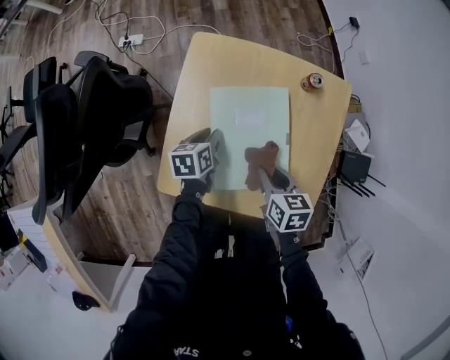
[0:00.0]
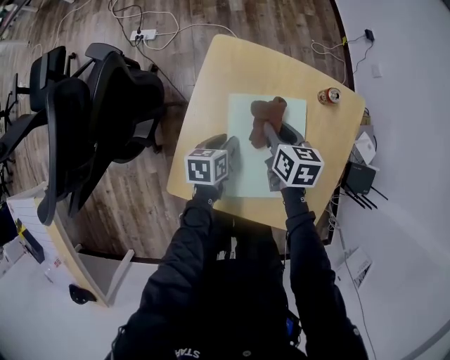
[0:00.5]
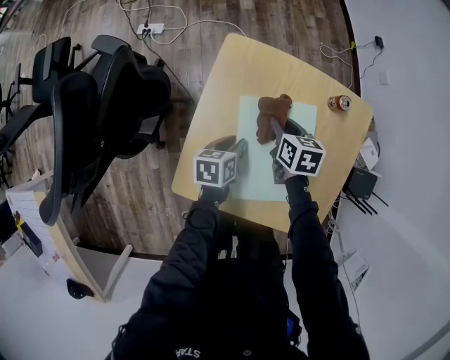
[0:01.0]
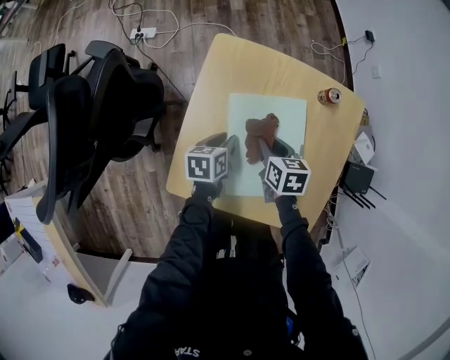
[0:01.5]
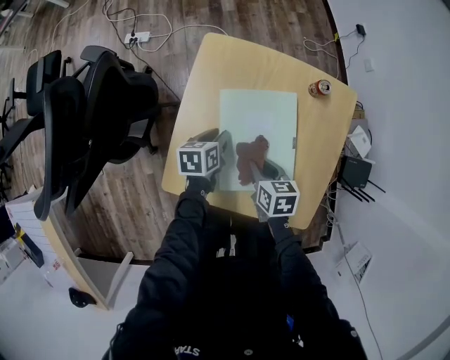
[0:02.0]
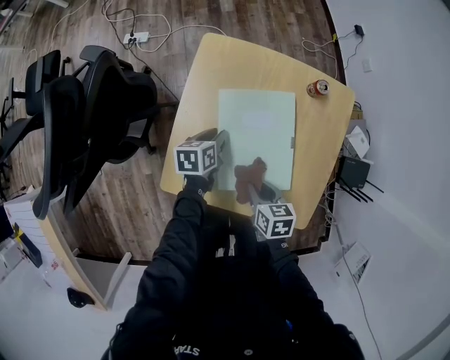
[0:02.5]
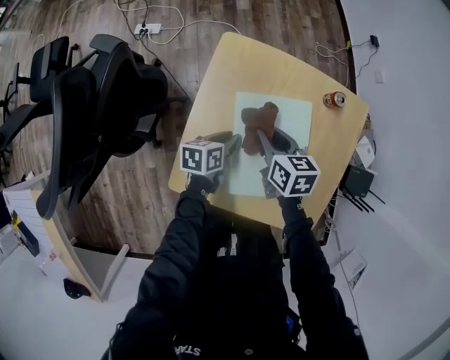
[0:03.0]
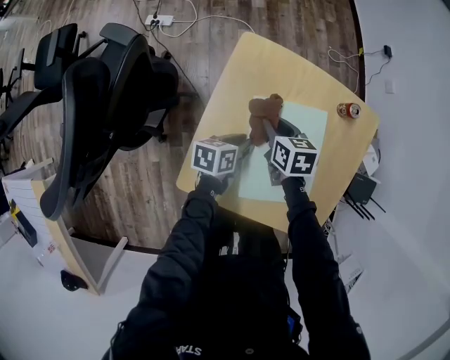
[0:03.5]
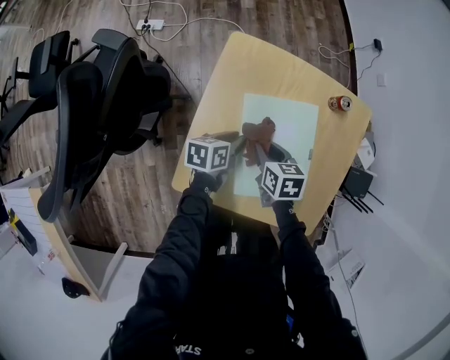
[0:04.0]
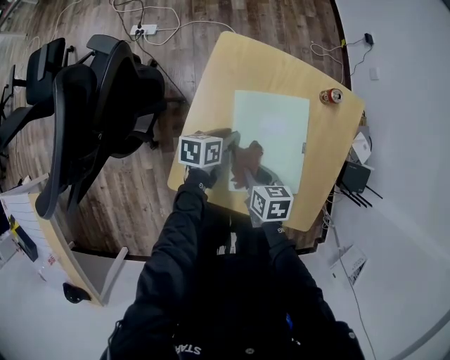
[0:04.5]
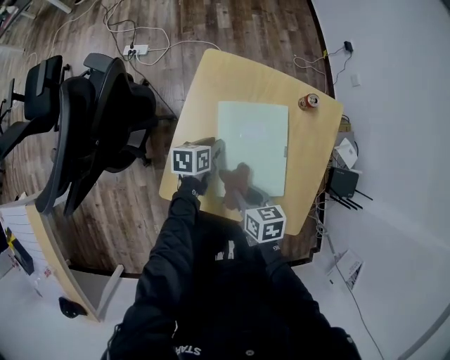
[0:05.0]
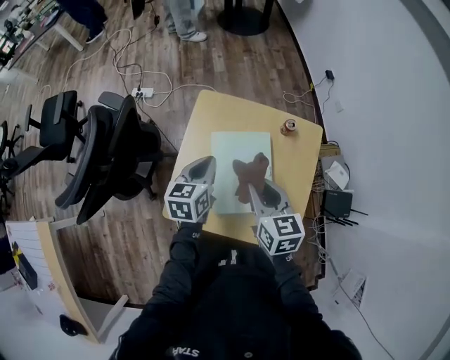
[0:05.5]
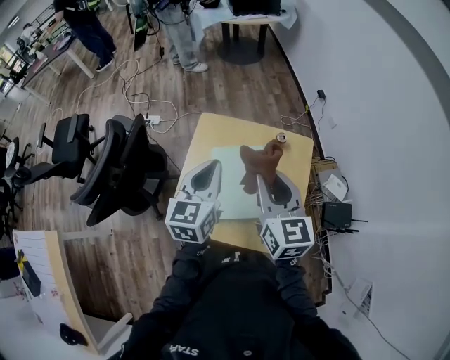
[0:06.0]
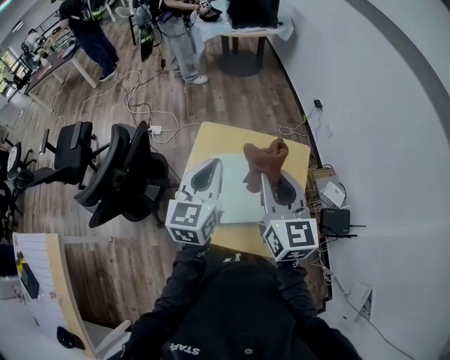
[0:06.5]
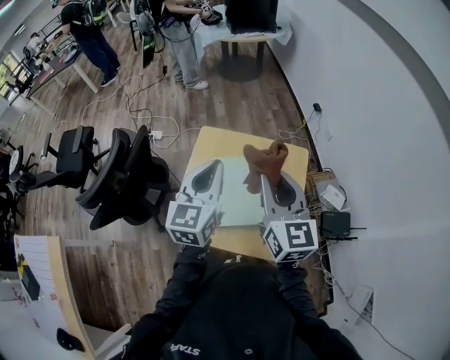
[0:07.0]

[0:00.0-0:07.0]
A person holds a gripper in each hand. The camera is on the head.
0:00.0 to 0:02.0: The right gripper moves roughly 15 cm forward and comes back.
0:02.0 to 0:03.5: The right gripper moves forward and to the left, about 15 cm.
0:03.5 to 0:05.0: The right gripper goes about 20 cm backward.
0:05.0 to 0:07.0: Both grippers travel together upward, roughly 40 cm. The left gripper points its fingers some 40 degrees further upward, while the right gripper tips its fingers upward by about 40 degrees.

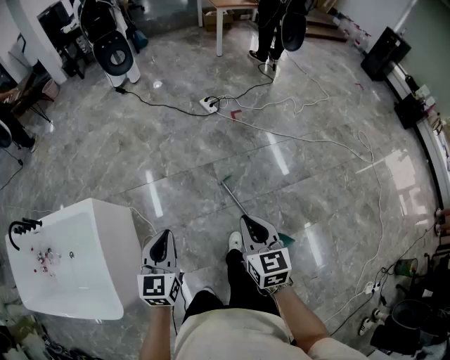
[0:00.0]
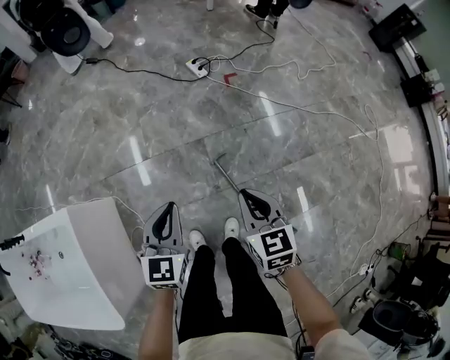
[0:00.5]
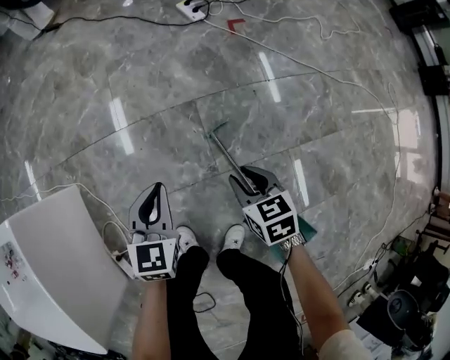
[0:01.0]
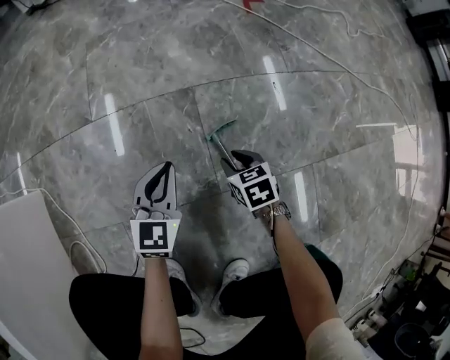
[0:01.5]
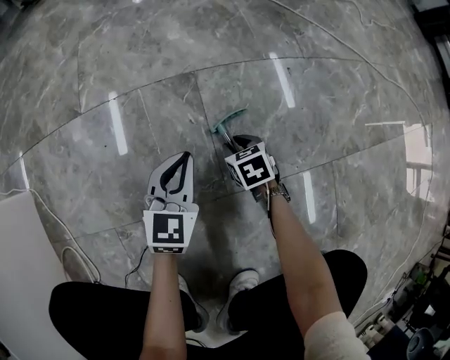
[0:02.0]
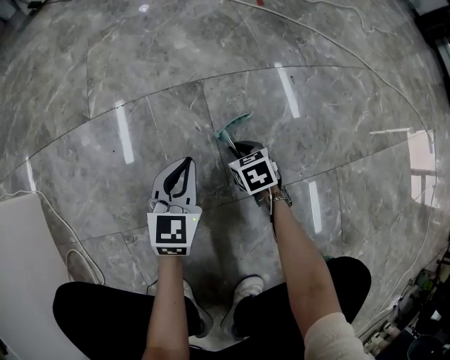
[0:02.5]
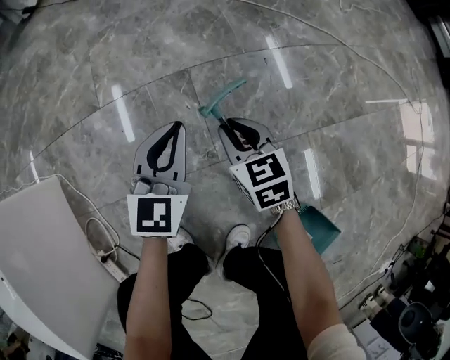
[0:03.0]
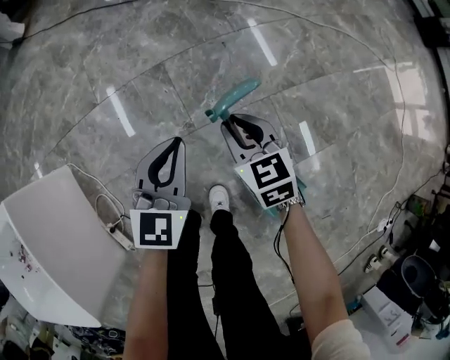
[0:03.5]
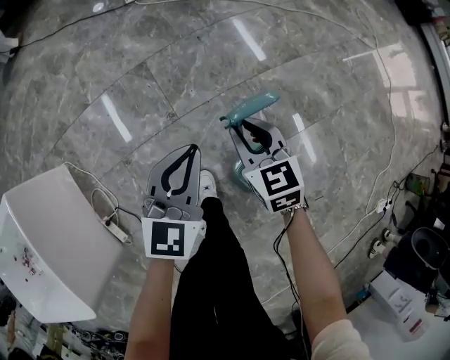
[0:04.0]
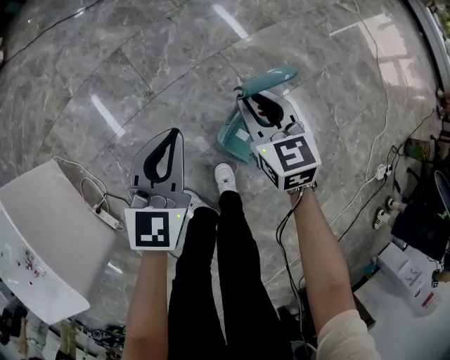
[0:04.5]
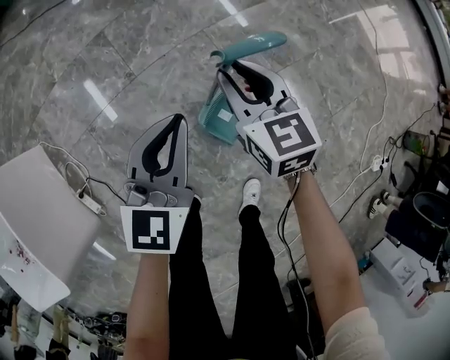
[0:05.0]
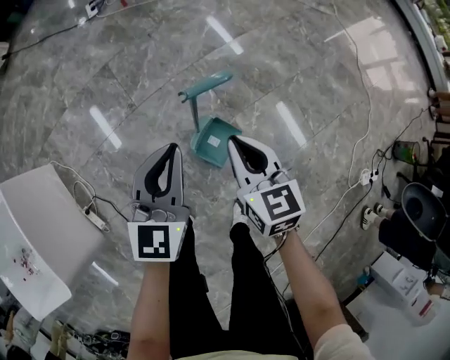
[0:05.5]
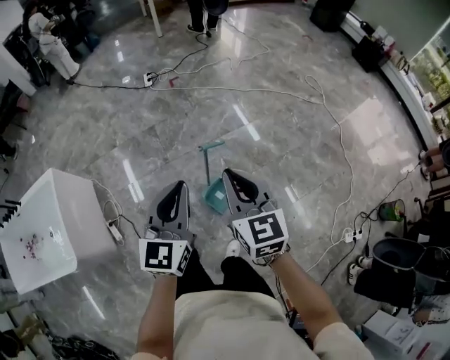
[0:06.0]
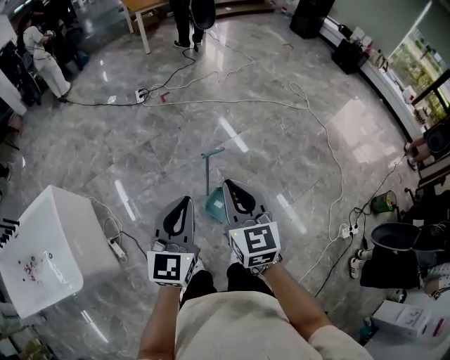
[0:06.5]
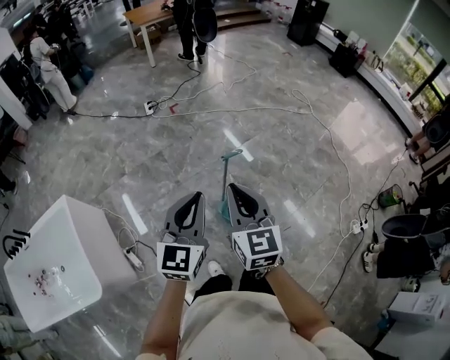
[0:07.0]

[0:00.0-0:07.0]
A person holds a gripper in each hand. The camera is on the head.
0:00.0 to 0:02.0: Both grippers travel together downward, roughly 90 cm. The right gripper tips its fingers downward by roughly 30 degrees, and opens.
0:02.0 to 0:03.5: Both grippers move upward, roughly 50 cm. The right gripper changes its angle by some 20 degrees.
0:03.5 to 0:05.0: Both grippers move to the right and backward, roughly 35 cm.
0:05.0 to 0:07.0: The grippers both shift upward and backward by roughly 60 cm. The right gripper changes its angle by about 20 degrees.

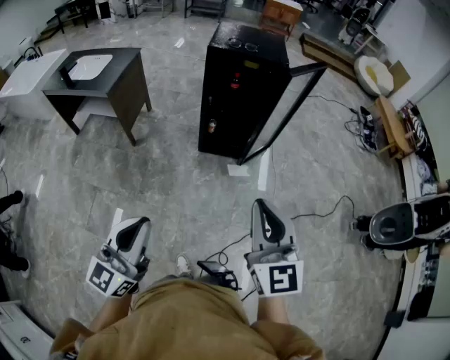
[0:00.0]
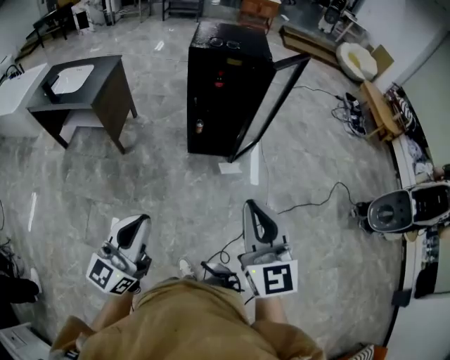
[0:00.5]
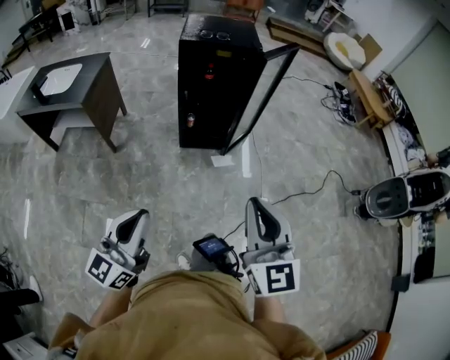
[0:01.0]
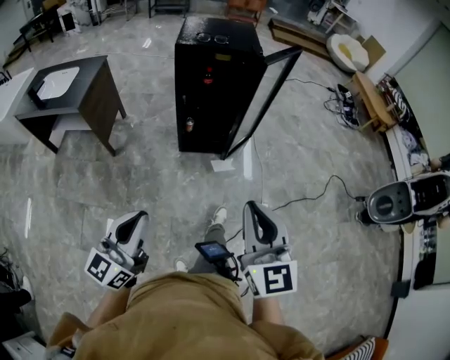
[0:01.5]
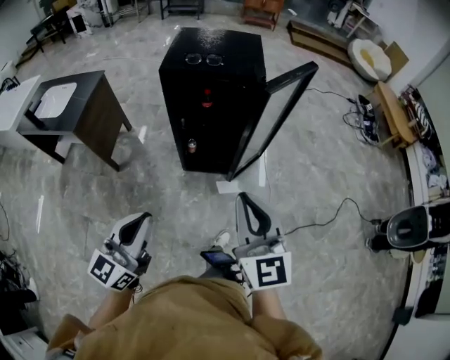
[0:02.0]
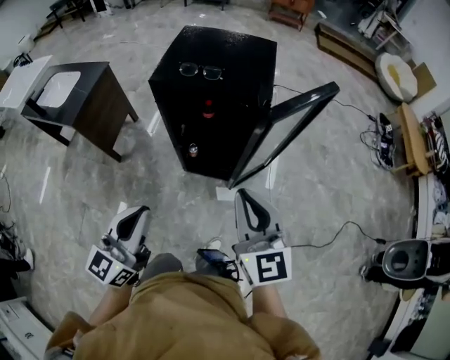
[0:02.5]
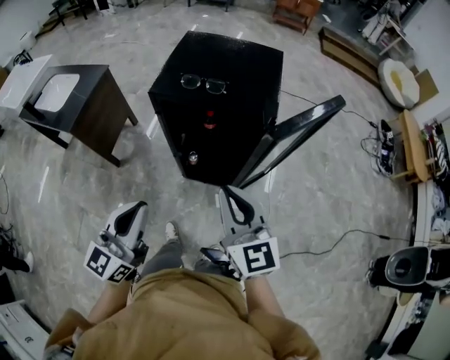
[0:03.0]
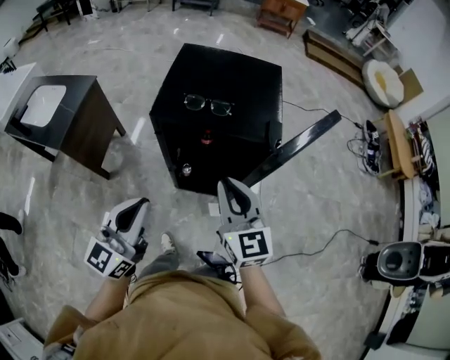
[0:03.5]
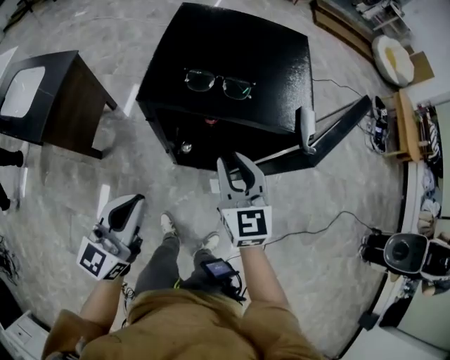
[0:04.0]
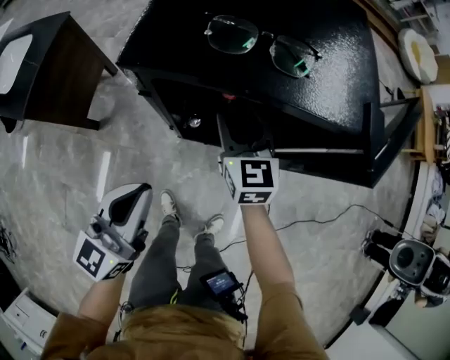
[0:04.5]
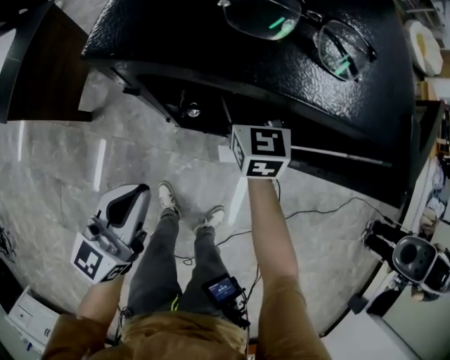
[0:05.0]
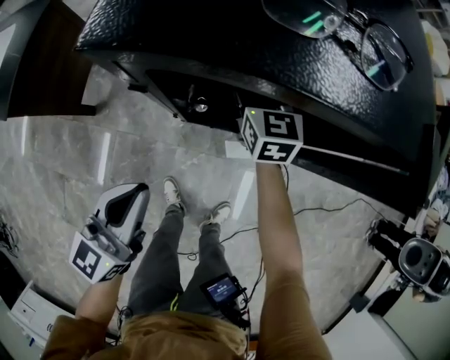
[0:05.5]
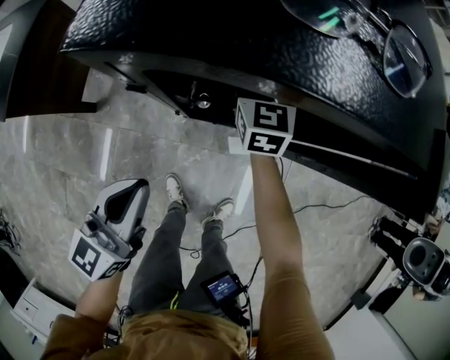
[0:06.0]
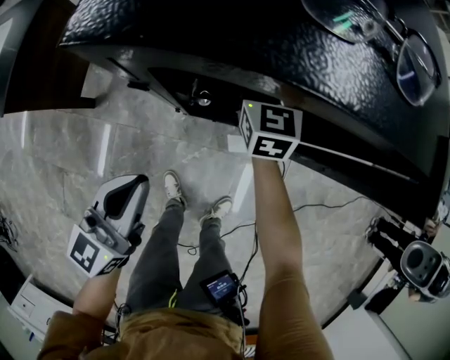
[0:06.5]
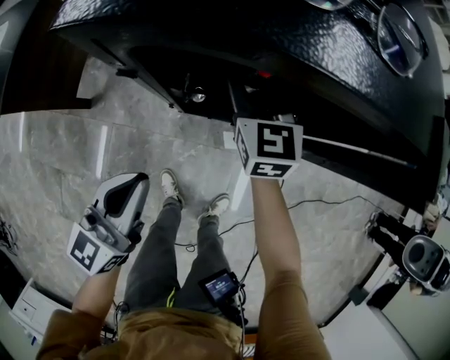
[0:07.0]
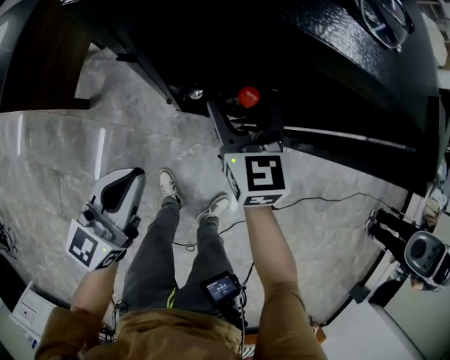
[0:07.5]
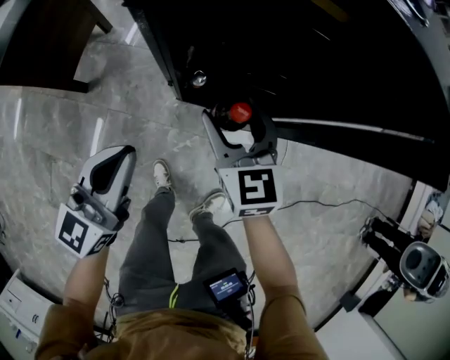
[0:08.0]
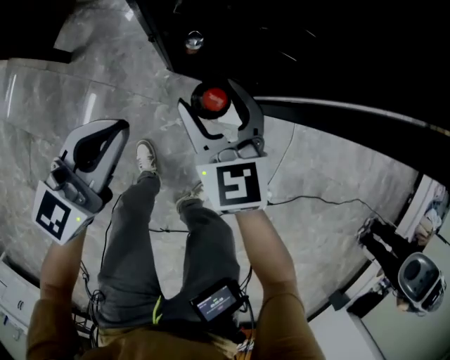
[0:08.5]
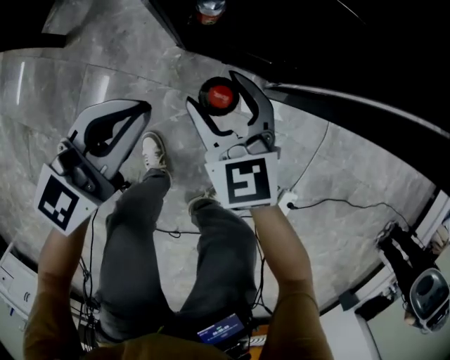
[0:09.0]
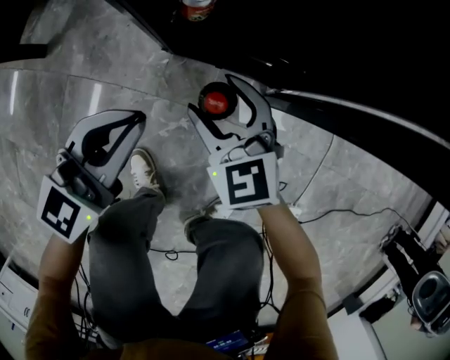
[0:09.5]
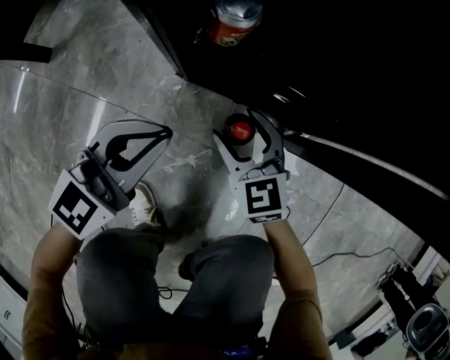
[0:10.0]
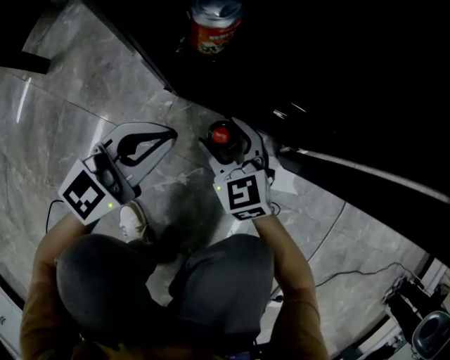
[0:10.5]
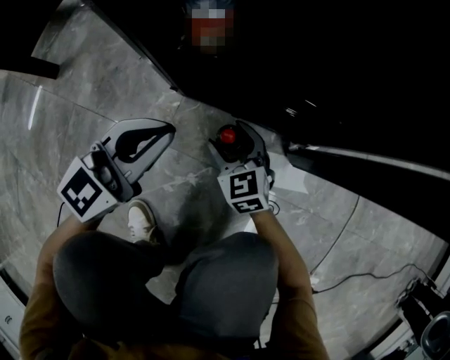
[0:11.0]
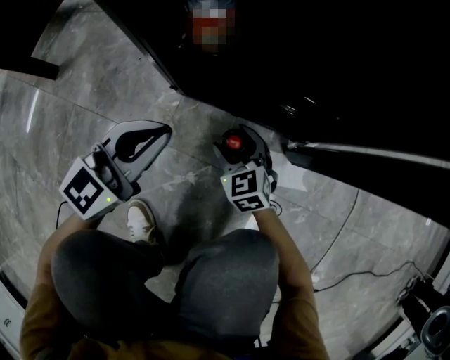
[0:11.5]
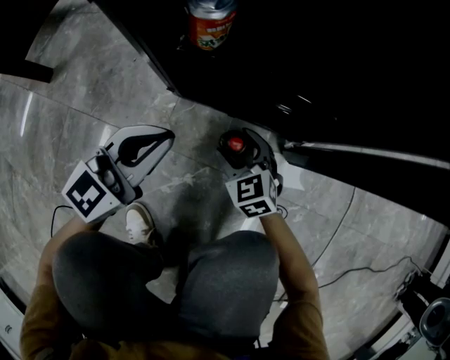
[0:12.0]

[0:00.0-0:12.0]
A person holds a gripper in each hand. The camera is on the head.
0:00.0 to 0:02.0: The two grippers go approximately 25 cm forward.
0:02.0 to 0:04.0: Both grippers travel together forward, roughly 35 cm.
0:04.0 to 0:06.0: The left gripper heads downward, covering approximately 20 cm; the right gripper travels downward and forward by about 30 cm, and opens.
0:06.0 to 0:08.0: The left gripper changes place by some 5 cm; the right gripper travels backward by approximately 20 cm.
0:08.0 to 0:10.0: The two grippers go some 50 cm downward. The left gripper changes its angle by some 20 degrees; the right gripper rotates about 20 degrees.
0:10.0 to 0:12.0: The left gripper goes about 5 cm downward. Meanwhile the right gripper moves downward, roughly 15 cm.

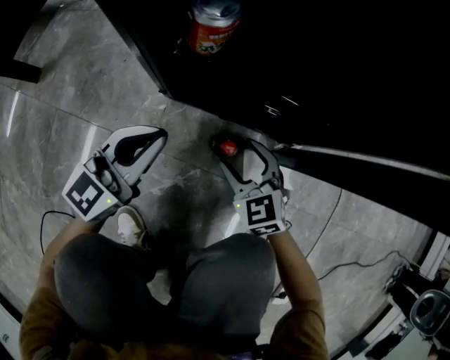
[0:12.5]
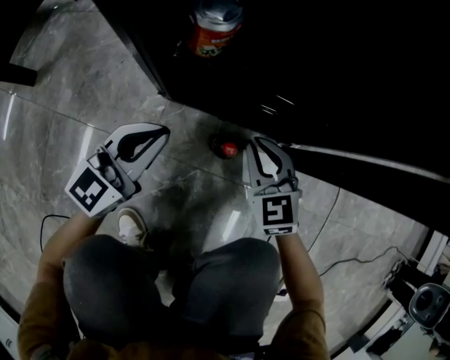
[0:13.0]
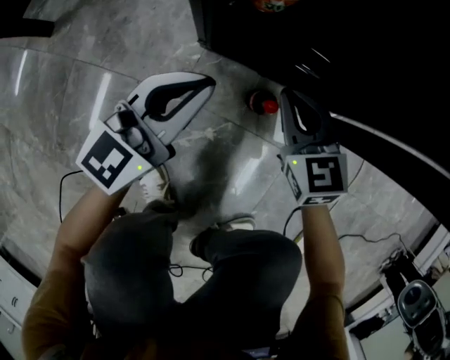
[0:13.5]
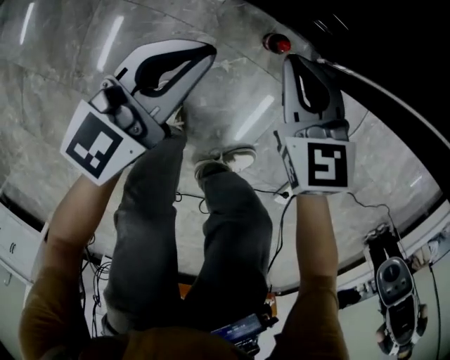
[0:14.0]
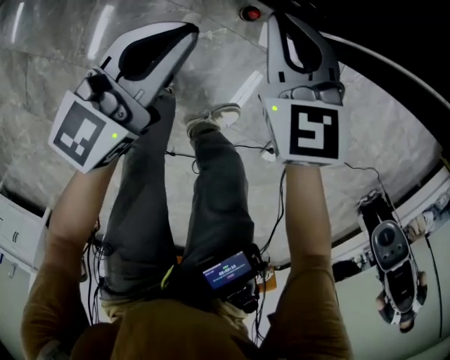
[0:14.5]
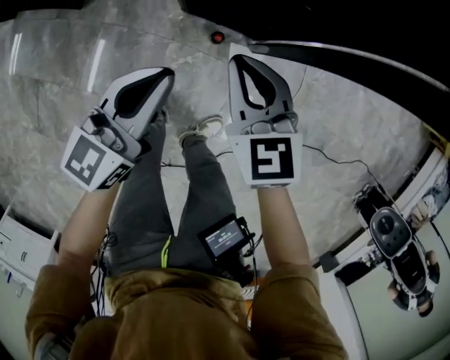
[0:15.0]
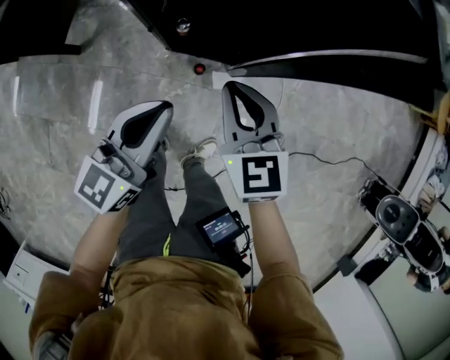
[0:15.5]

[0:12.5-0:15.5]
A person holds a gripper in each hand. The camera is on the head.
0:12.5 to 0:14.0: The right gripper moves upward, approximately 10 cm, travels to the left and back again, about 10 cm each way, rotates roughly 20 degrees, and closes.
0:14.0 to 0:15.5: The left gripper turns by approximately 20 degrees.
